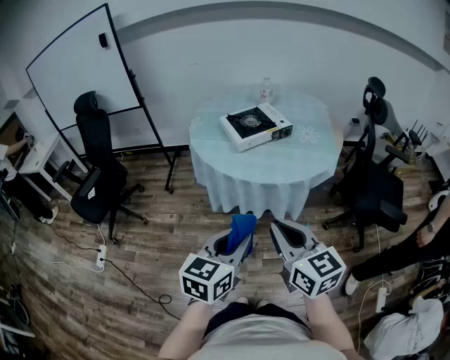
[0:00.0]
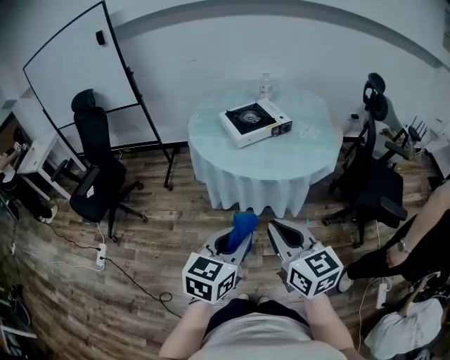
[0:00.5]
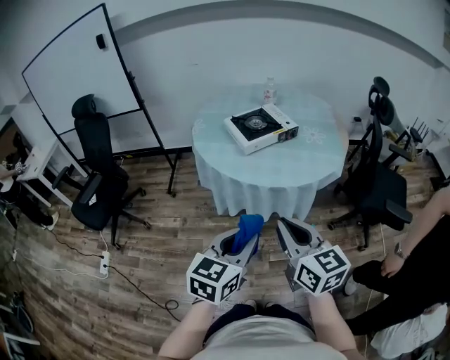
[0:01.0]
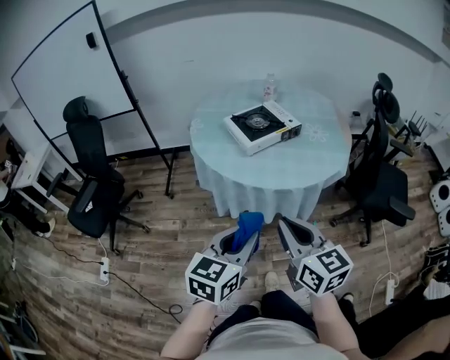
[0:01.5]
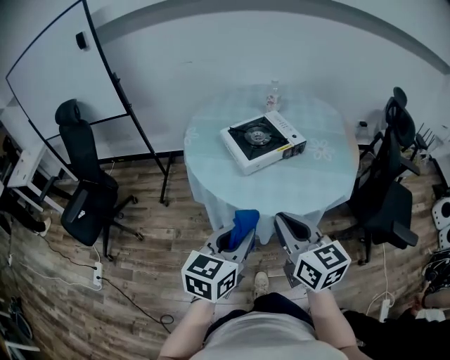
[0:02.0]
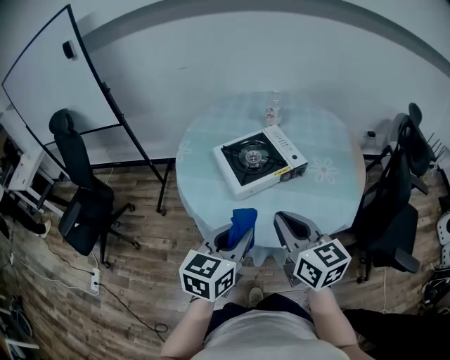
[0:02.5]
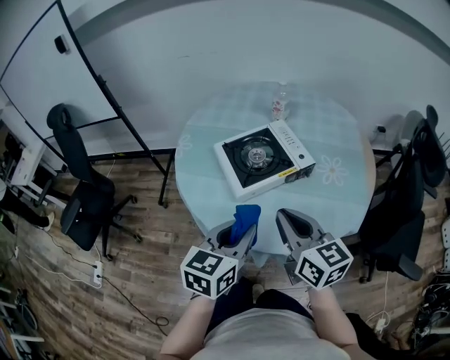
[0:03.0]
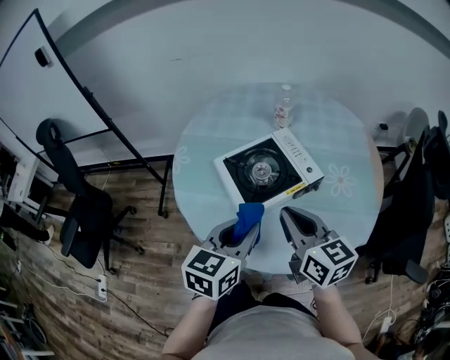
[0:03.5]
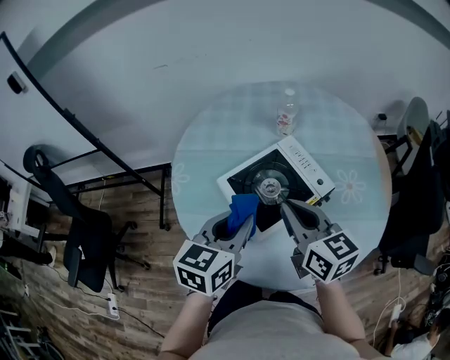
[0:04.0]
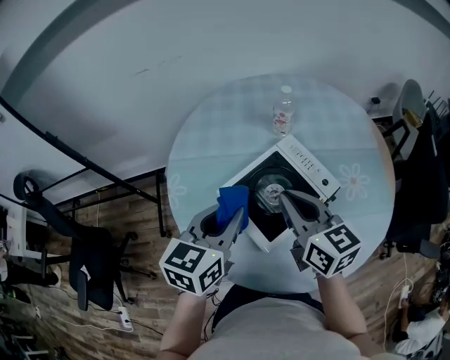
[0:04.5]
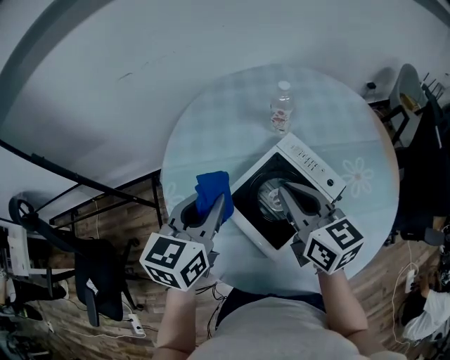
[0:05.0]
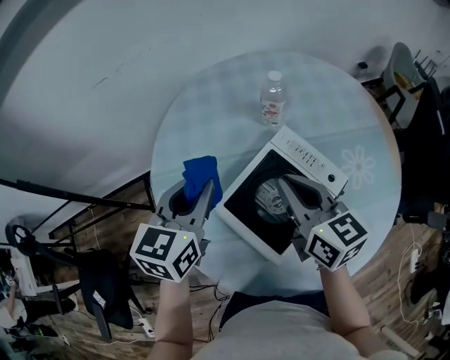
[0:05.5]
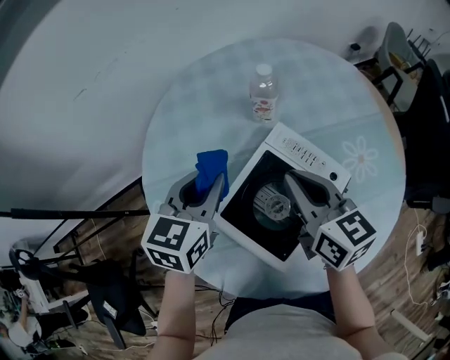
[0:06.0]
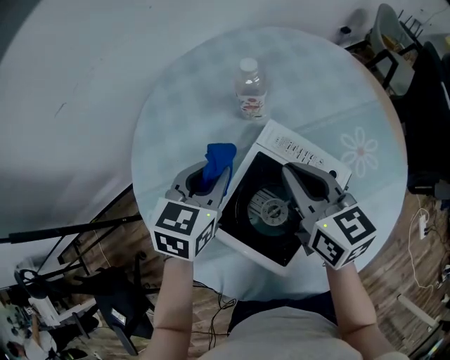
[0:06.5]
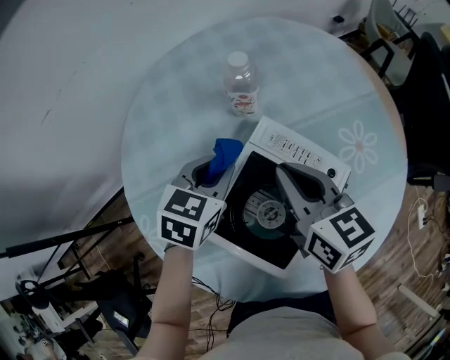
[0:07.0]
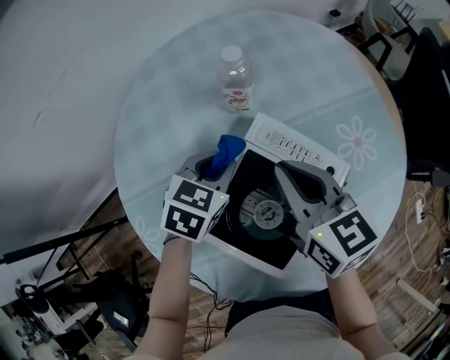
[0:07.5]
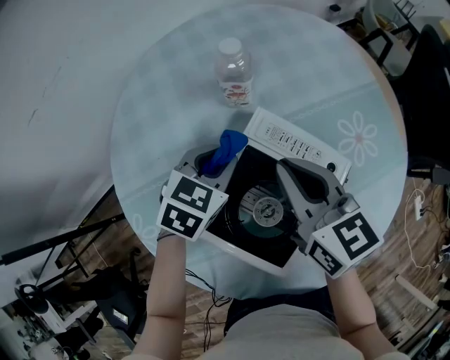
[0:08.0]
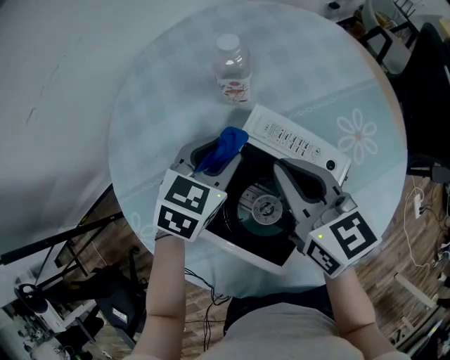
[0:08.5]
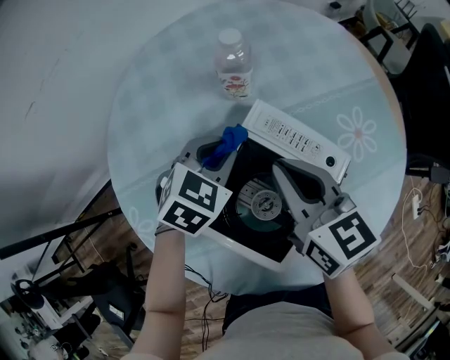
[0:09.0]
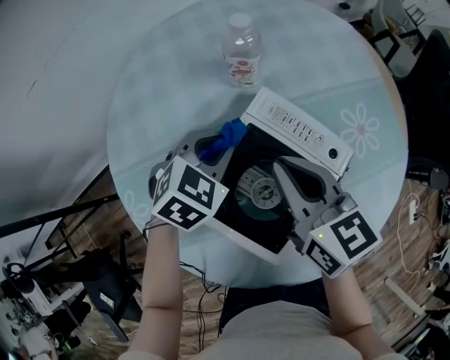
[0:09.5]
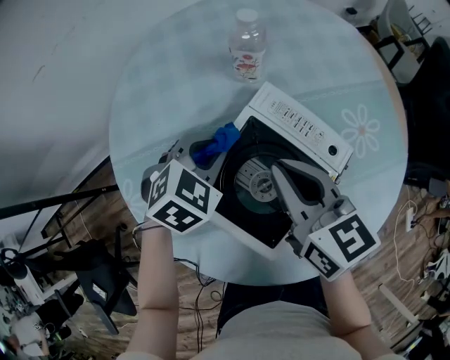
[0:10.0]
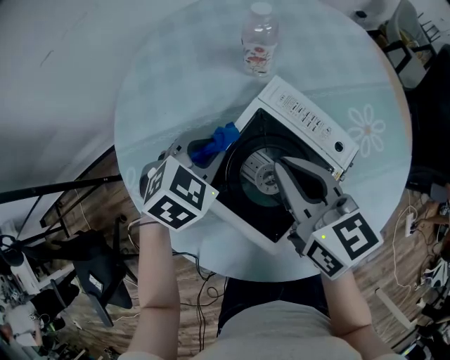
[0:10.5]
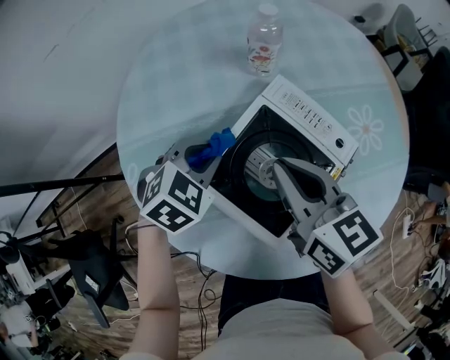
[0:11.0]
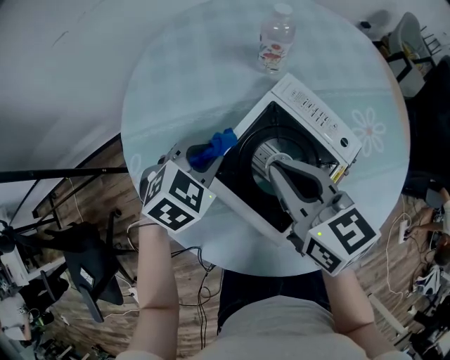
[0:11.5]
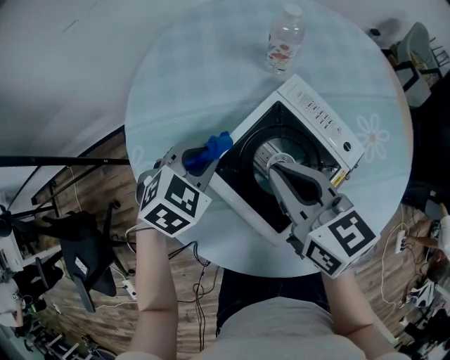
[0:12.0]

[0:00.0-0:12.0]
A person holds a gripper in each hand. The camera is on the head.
0:00.0 to 0:02.0: Both grippers travel together forward, approximately 20 cm.
0:02.0 to 0:04.0: The two grippers go roughly 35 cm forward.
0:04.0 to 0:06.0: The two grippers go about 20 cm forward.
0:06.0 to 0:08.0: The left gripper moves downward, to the right and forward, approximately 15 cm, and turns by roughly 30 degrees.
0:08.0 to 0:10.0: The grippers both shift backward by roughly 5 cm.
0:10.0 to 0:12.0: The left gripper shifts roughly 10 cm backward and to the left. Meanwhile the right gripper moves roughly 5 cm.

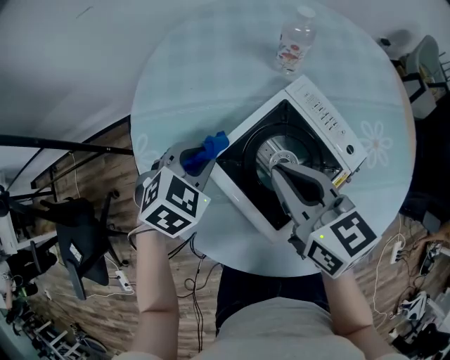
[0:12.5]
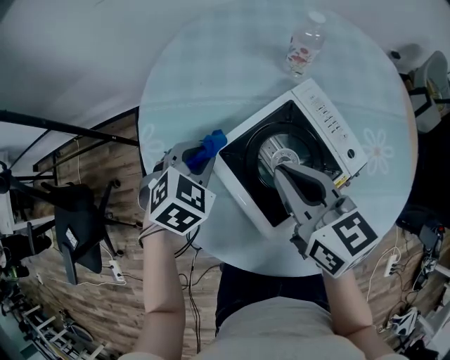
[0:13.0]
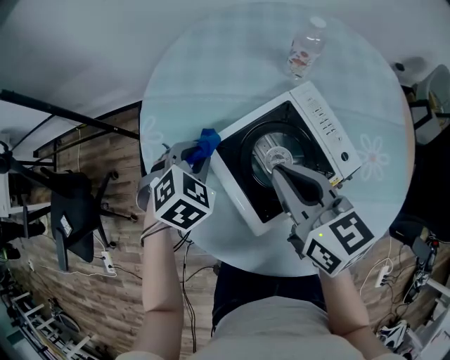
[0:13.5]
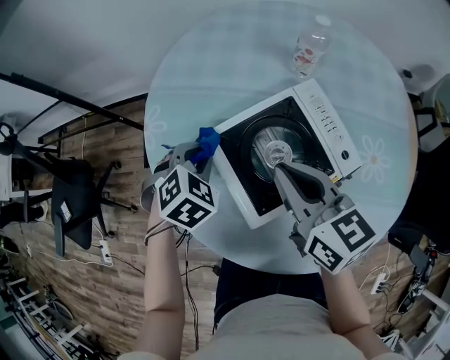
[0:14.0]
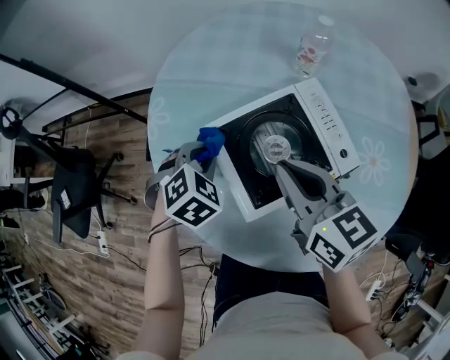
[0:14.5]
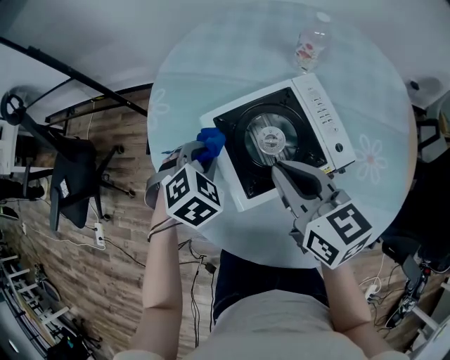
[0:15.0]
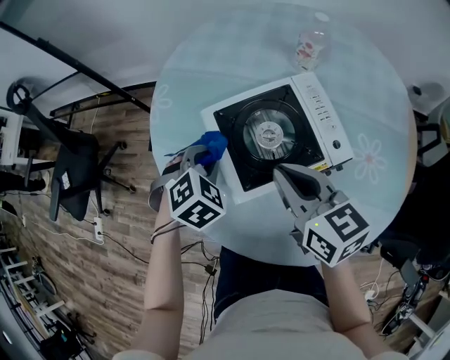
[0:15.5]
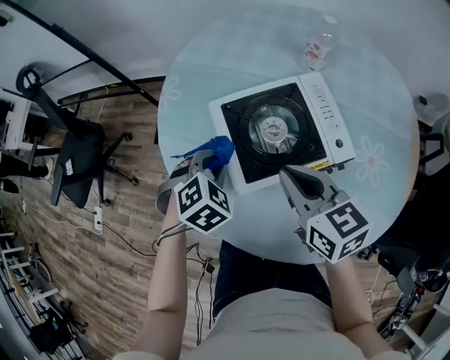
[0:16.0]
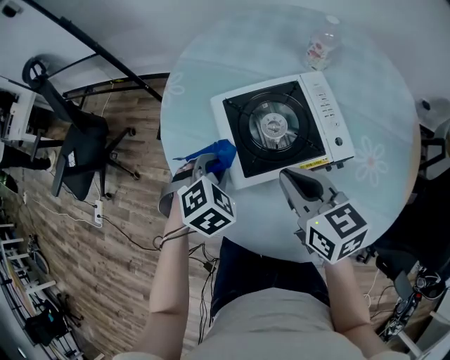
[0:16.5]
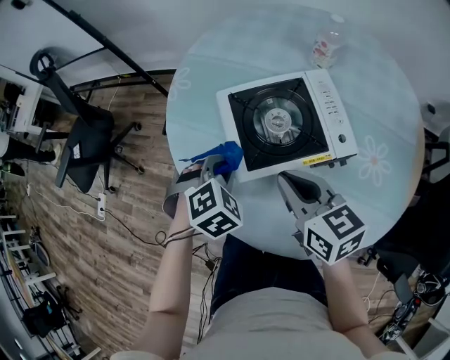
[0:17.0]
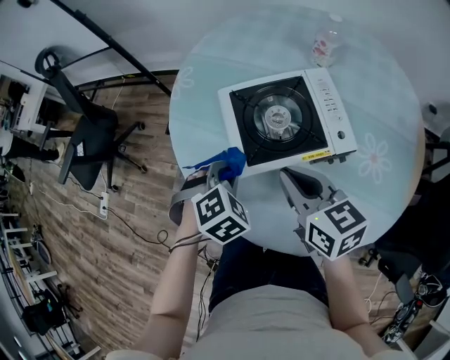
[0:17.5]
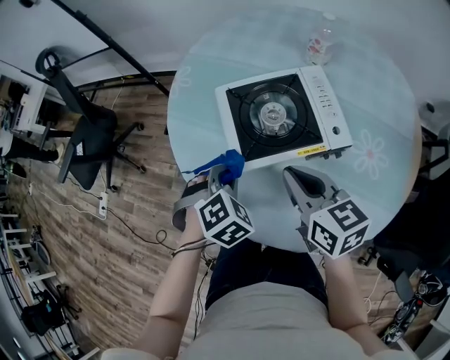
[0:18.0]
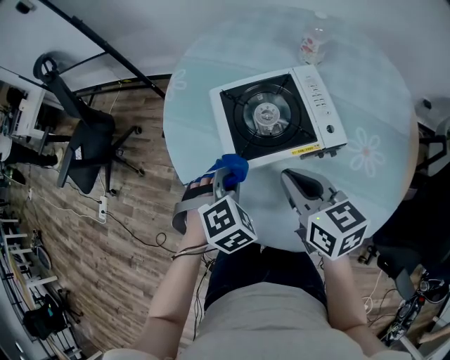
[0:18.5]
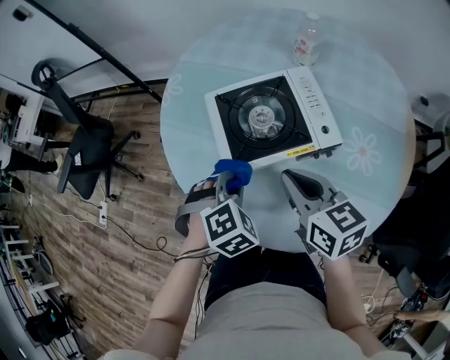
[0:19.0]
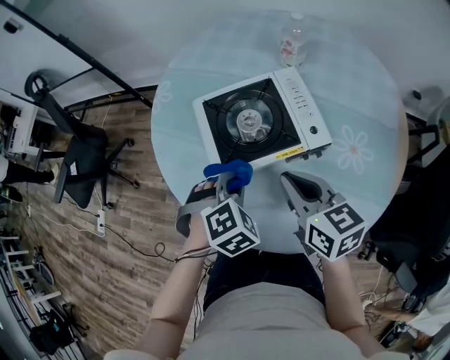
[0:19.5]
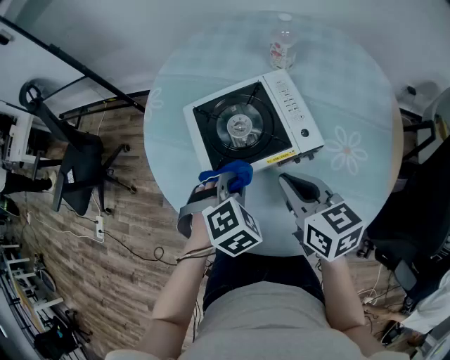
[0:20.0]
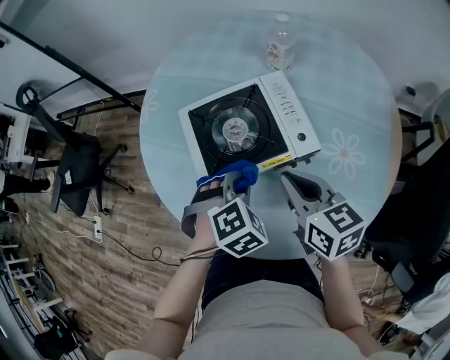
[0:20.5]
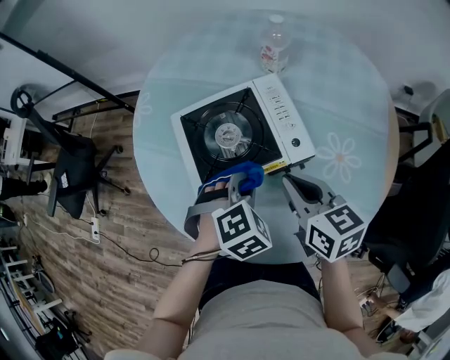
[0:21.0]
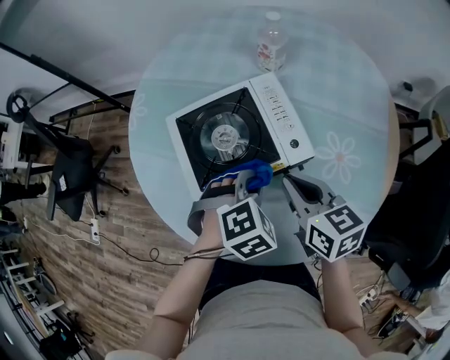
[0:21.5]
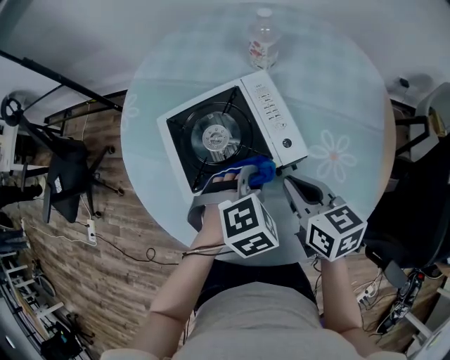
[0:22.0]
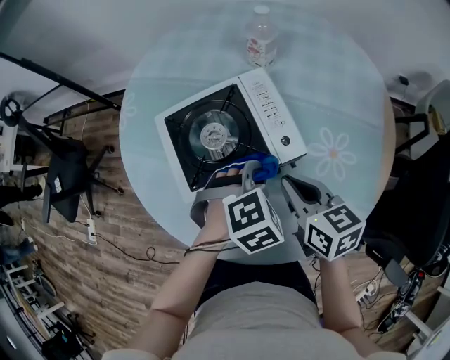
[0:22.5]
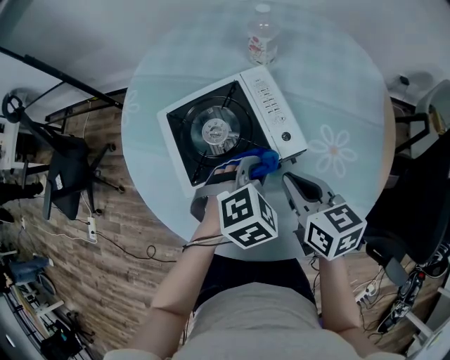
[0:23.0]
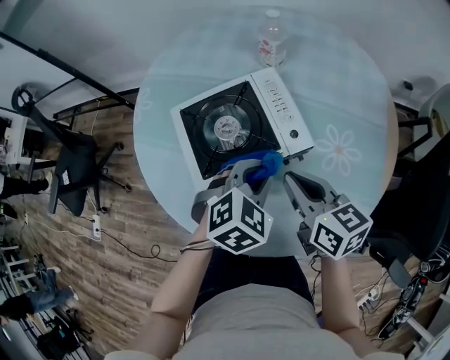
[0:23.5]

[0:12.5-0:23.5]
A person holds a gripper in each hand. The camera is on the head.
0:12.5 to 0:14.5: The left gripper ends up roughly 5 cm from where it was, and swivels about 20 degrees. Meanwhile the right gripper ends up about 5 cm from where it was.
0:14.5 to 0:16.0: The grippers both shift backward by about 10 cm.
0:16.0 to 0:18.0: The left gripper travels backward by approximately 10 cm; the right gripper shifts some 5 cm backward.
0:18.0 to 0:20.0: The right gripper travels to the right by some 5 cm; the left gripper goes approximately 10 cm to the right.
0:20.0 to 0:21.5: The left gripper heads to the right, covering approximately 10 cm, while the right gripper moves approximately 5 cm.
0:21.5 to 0:23.5: There are only small adjustments of the grippers.

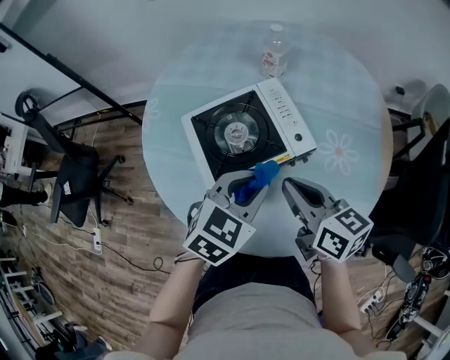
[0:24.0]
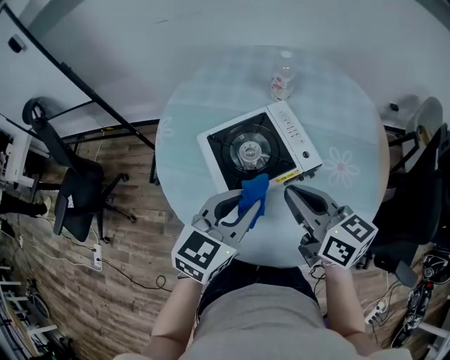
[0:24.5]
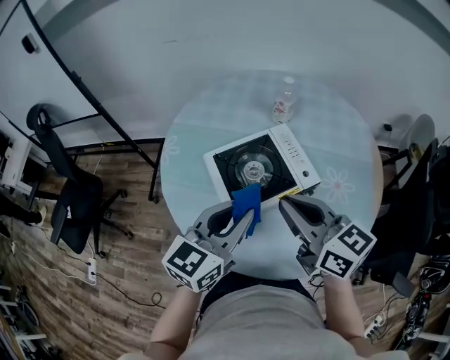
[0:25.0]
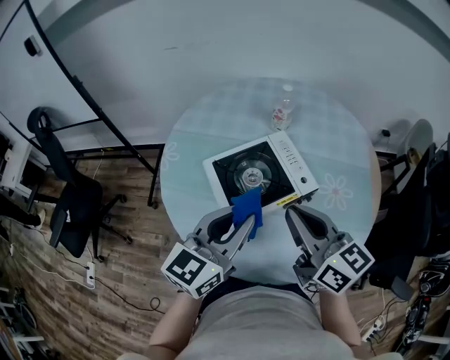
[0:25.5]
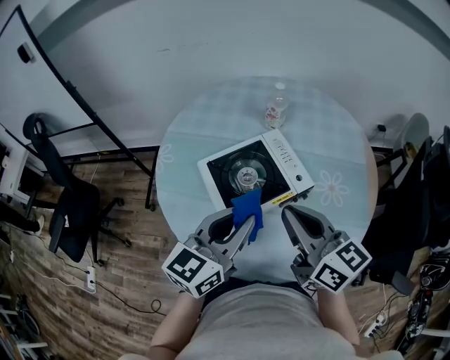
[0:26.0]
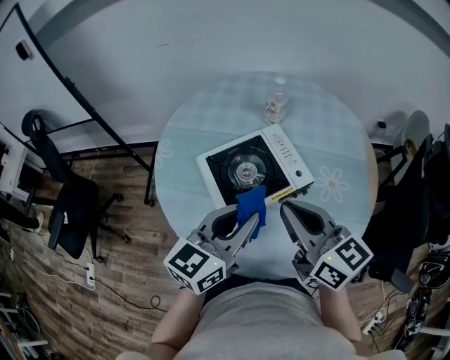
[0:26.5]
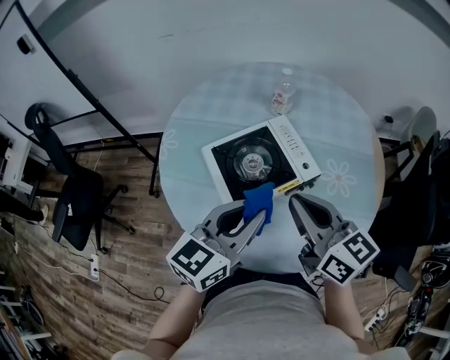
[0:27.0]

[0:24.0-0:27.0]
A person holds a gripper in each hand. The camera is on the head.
0:24.0 to 0:25.5: The right gripper travels upward by approximately 10 cm, while the left gripper shifts about 15 cm upward and to the left, and tips its fingers upward by about 30 degrees.
0:25.5 to 0:27.0: The grippers move only a little.

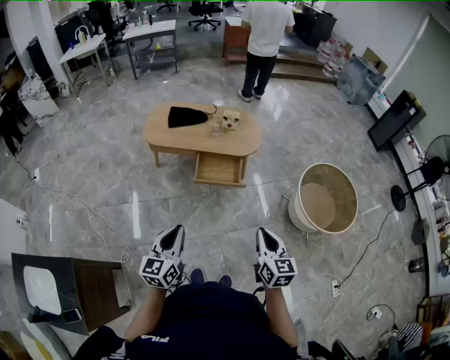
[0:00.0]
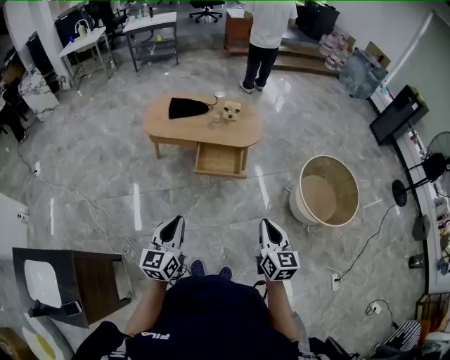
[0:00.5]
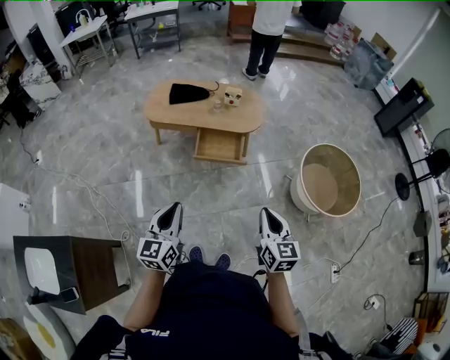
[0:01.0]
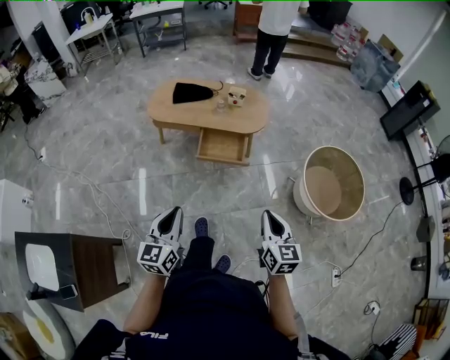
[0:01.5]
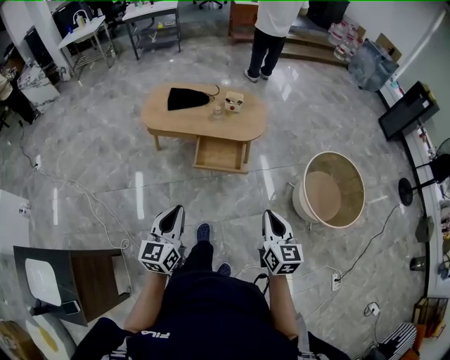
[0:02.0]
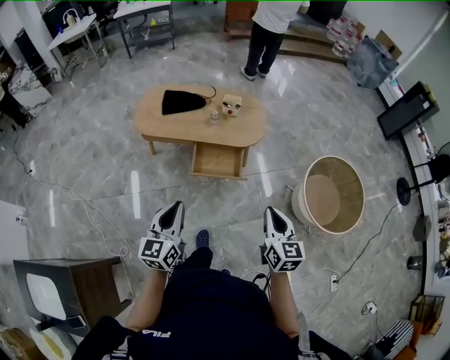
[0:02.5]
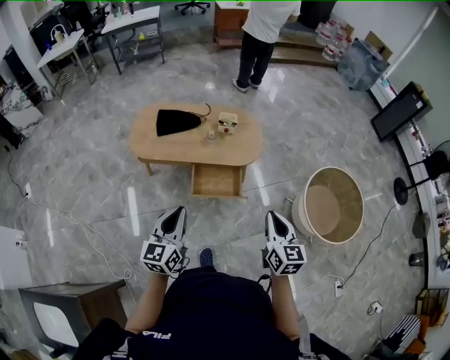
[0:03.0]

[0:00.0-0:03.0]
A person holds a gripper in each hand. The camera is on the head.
0:00.0 to 0:01.5: The grippers stay close to where they were, moving slightly.
0:01.5 to 0:03.0: The two grippers go about 30 cm forward.
